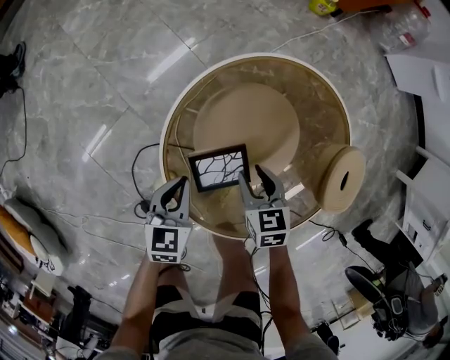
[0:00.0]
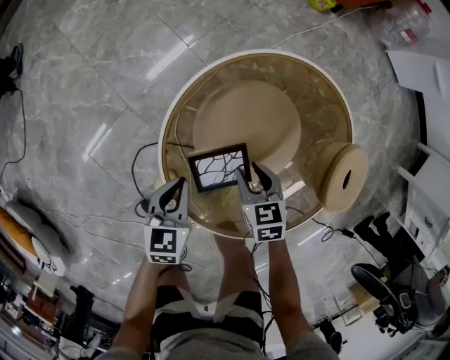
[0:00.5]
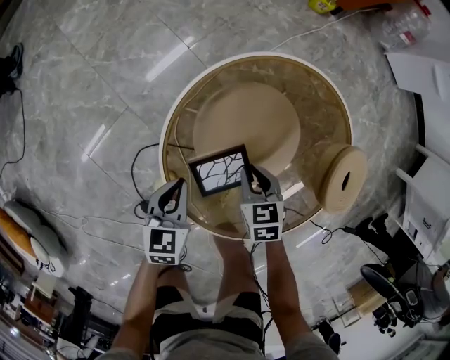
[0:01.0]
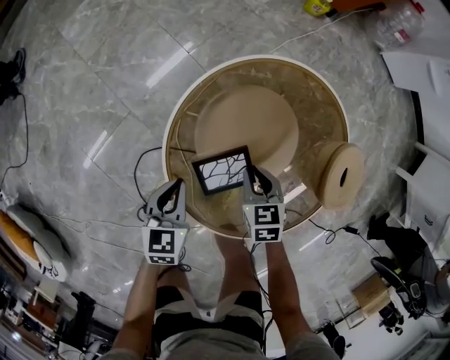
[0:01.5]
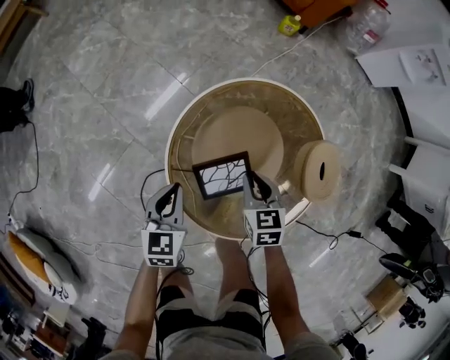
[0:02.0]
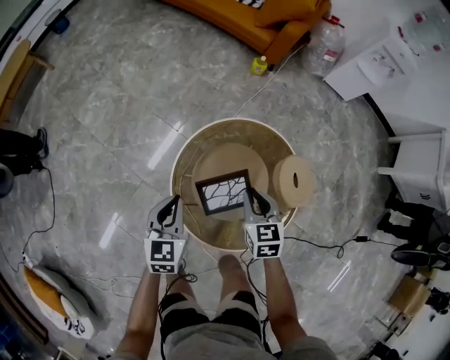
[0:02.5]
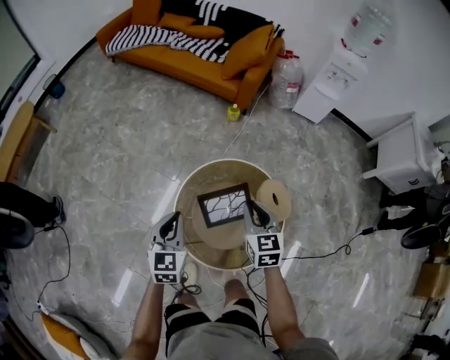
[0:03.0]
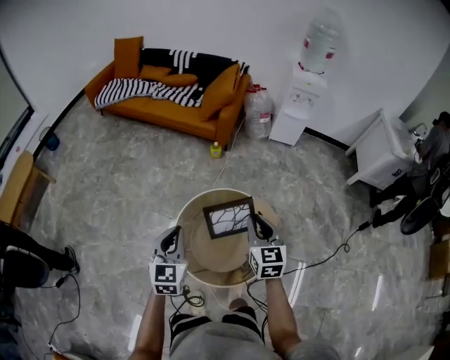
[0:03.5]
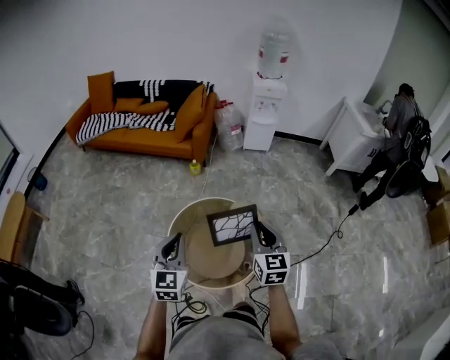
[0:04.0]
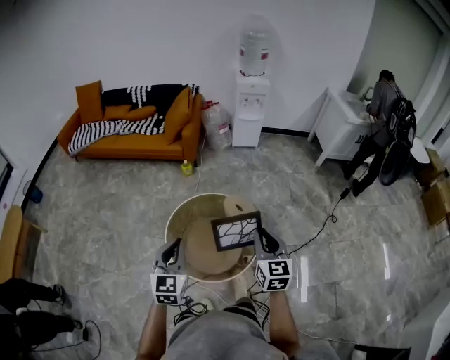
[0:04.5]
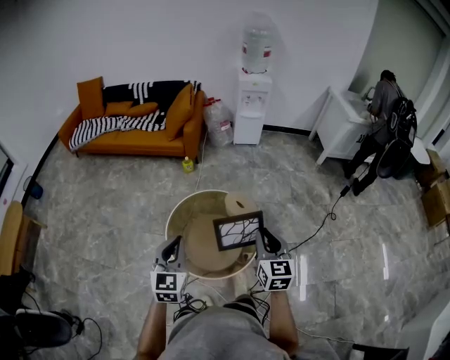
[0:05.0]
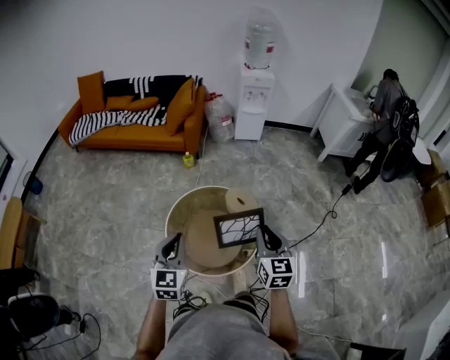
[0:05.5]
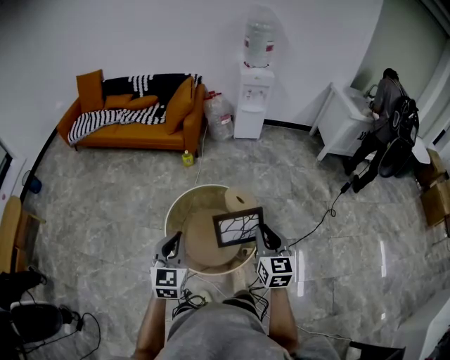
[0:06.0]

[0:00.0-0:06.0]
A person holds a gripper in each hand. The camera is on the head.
0:00.0 to 0:02.0: Both grippers move upward, roughly 10 cm. The right gripper closes up.
0:02.0 to 0:04.0: The grippers both shift upward by roughly 40 cm. The left gripper tips its fingers upward by some 40 degrees, while the right gripper tips its fingers upward by roughly 40 degrees.
0:04.0 to 0:06.0: The right gripper heads backward, covering some 10 cm. The left gripper heads backward, covering some 5 cm.

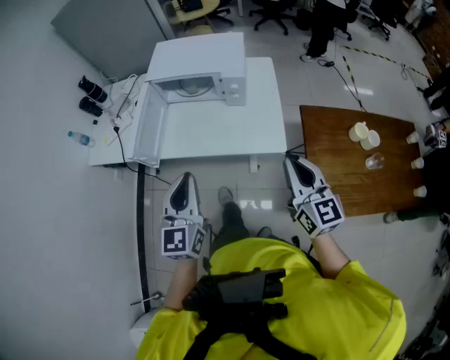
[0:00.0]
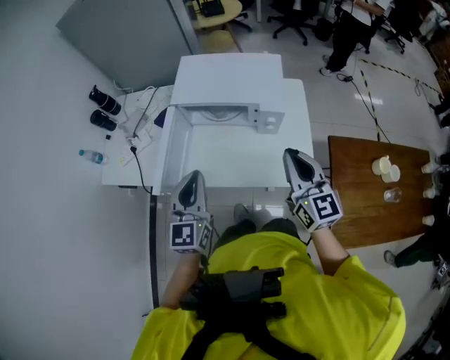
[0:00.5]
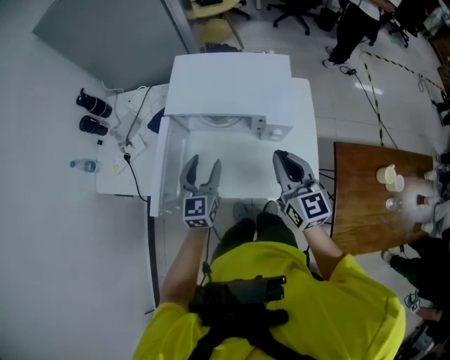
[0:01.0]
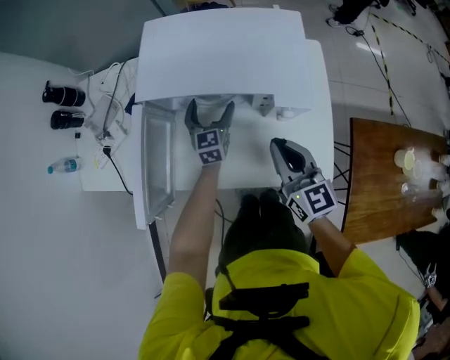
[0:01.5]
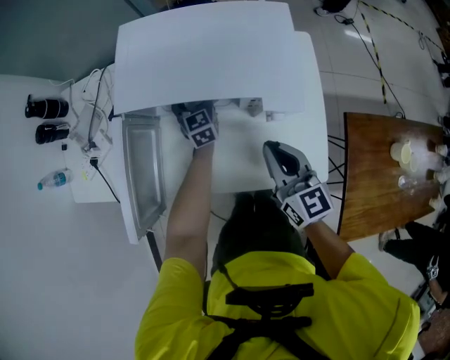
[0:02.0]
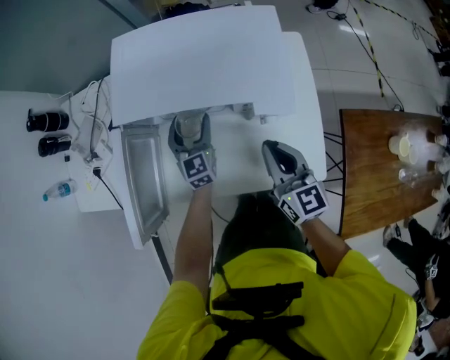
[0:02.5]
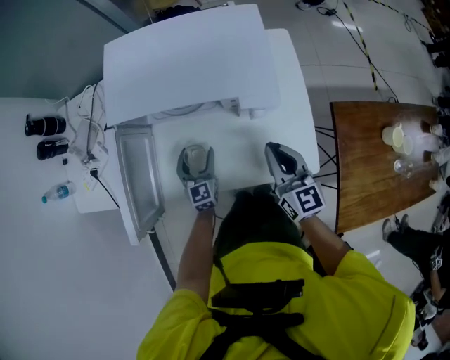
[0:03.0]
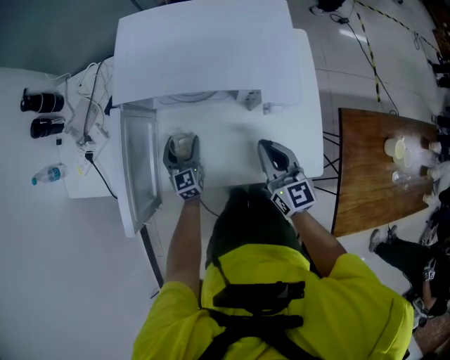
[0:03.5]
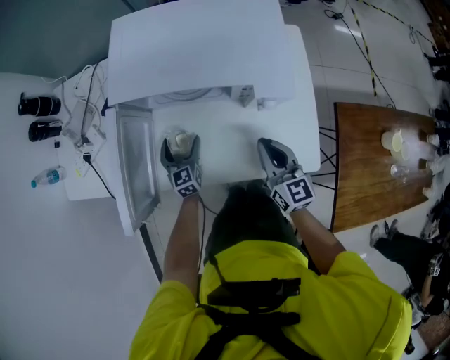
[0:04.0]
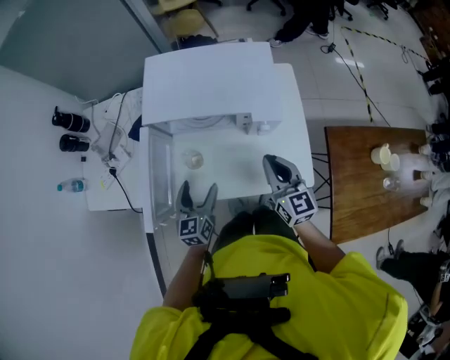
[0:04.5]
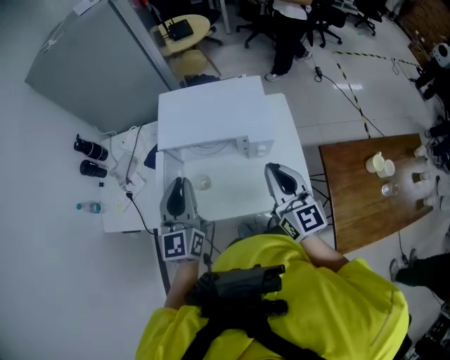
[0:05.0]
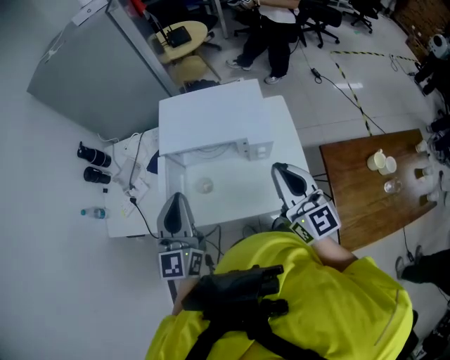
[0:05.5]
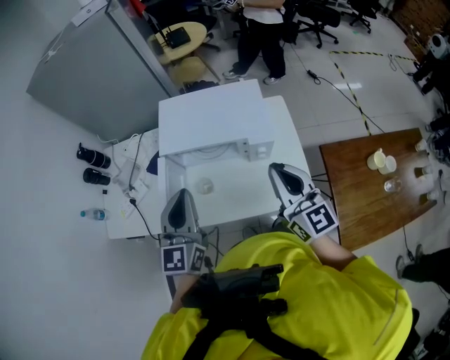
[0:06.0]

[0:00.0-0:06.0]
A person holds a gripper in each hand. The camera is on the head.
0:00.0 to 0:02.0: The left gripper shifts approximately 60 cm forward and downward, and opens up. The right gripper is displaced forward and downward by roughly 40 cm.
0:02.0 to 0:04.0: The left gripper travels backward and to the left by approximately 20 cm. The right gripper heads downward, covering about 5 cm.
0:04.0 to 0:06.0: The left gripper shifts about 40 cm upward, rotates some 30 degrees, and closes; the right gripper moves upward, about 30 cm, and rotates some 20 degrees.

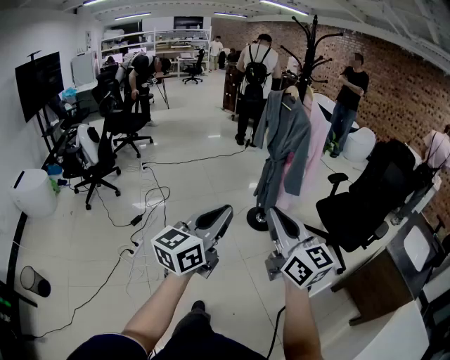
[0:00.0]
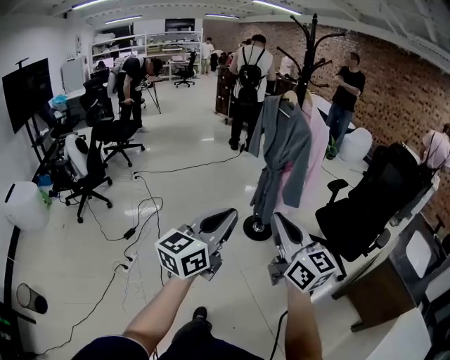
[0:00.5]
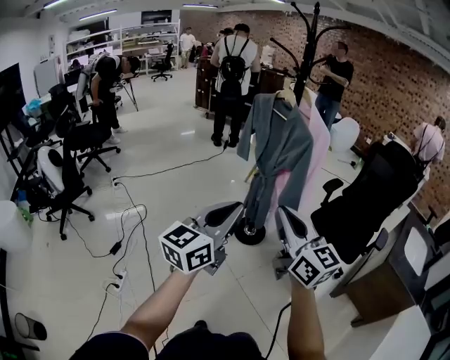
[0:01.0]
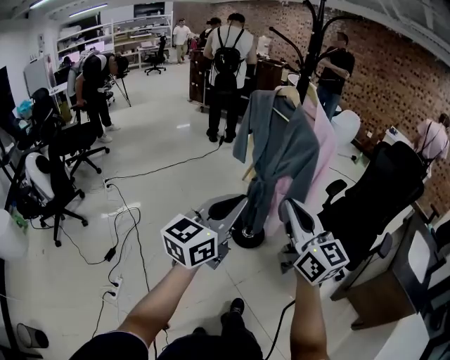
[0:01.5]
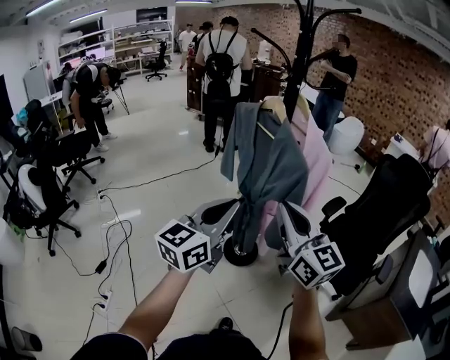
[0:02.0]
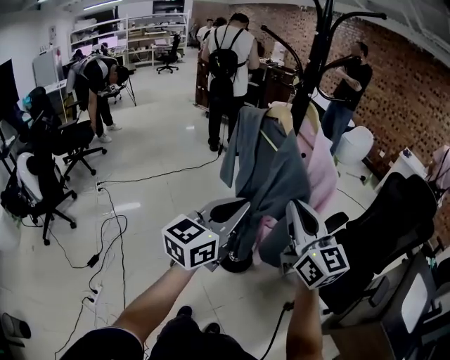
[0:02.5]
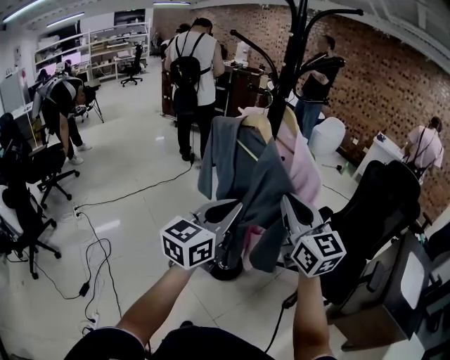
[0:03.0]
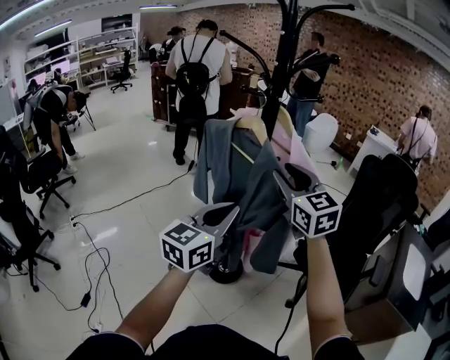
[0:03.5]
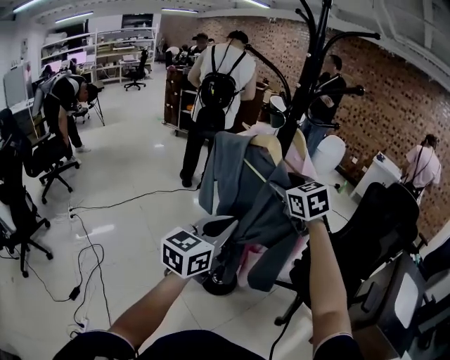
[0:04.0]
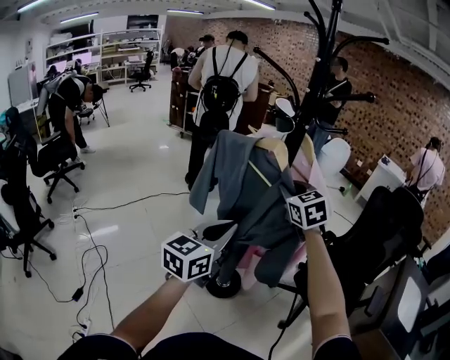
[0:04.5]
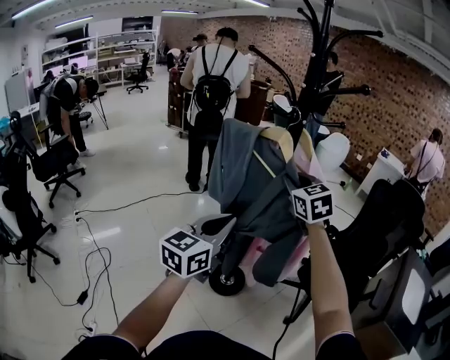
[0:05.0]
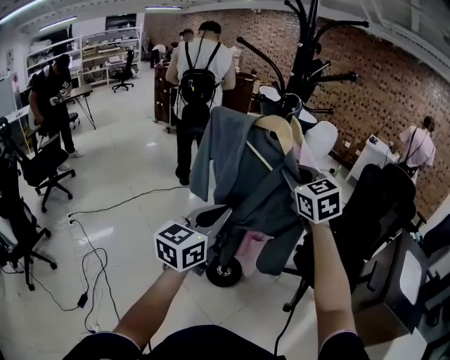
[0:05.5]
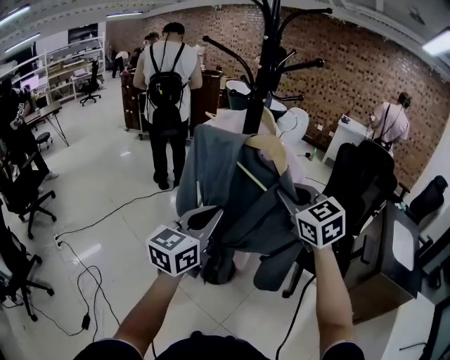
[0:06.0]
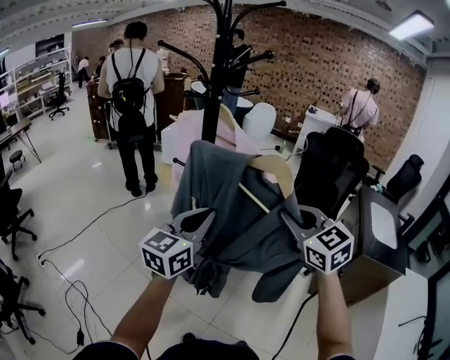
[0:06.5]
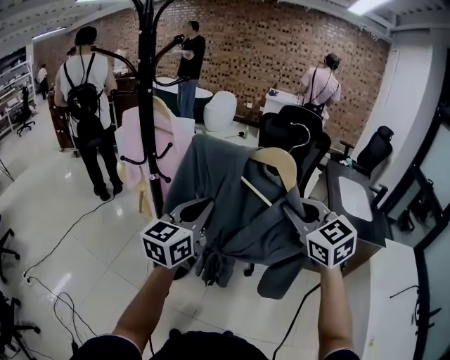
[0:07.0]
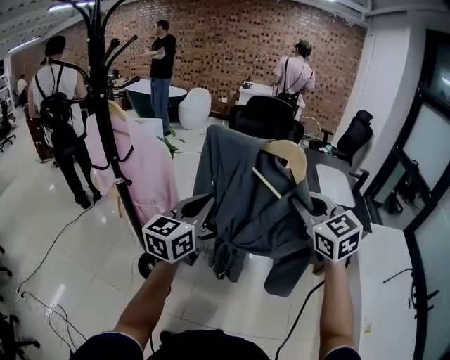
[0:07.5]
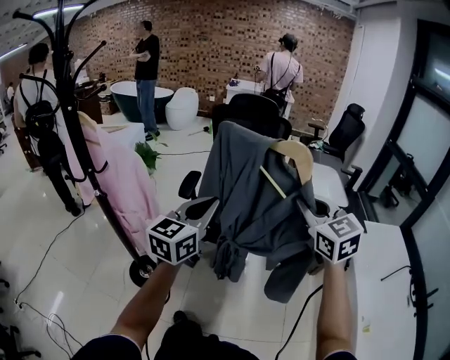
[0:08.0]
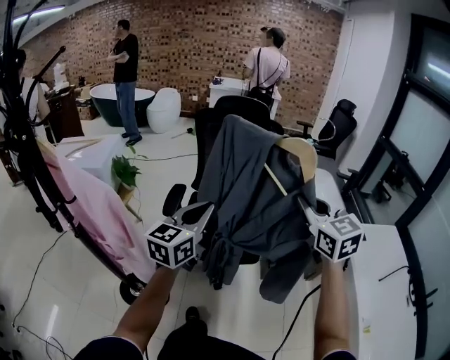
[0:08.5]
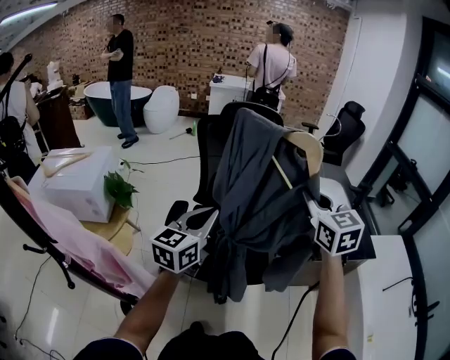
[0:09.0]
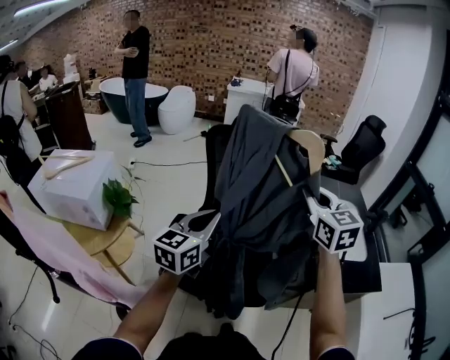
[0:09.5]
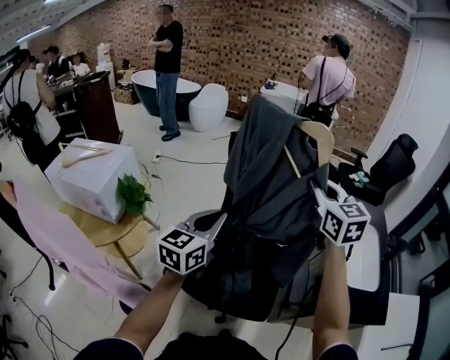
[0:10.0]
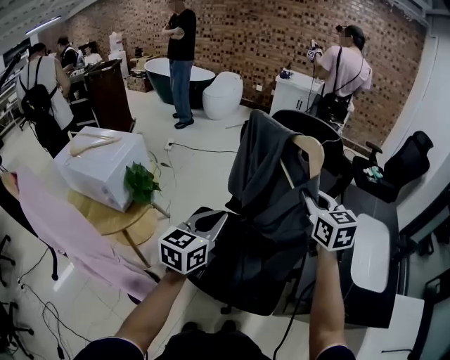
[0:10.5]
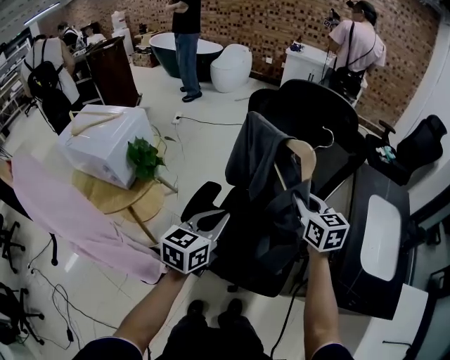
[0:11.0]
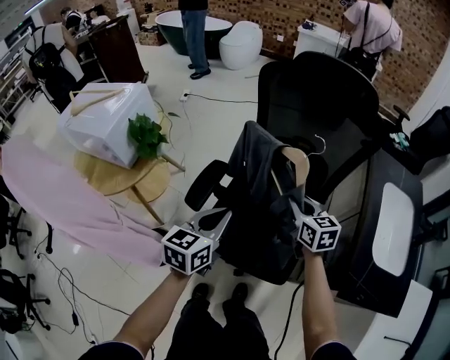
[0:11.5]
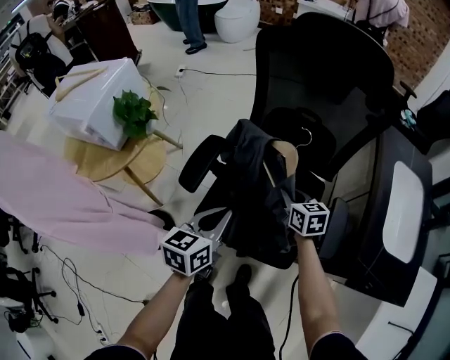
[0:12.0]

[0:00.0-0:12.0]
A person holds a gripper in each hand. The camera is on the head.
0:00.0 to 0:02.0: The pair of grippers is taken forward, approximately 50 cm.
0:02.0 to 0:04.0: The right gripper goes about 30 cm forward, tilts its fingers roughly 30 degrees downward, and opens up. Meanwhile the left gripper is displaced forward by roughly 15 cm.
0:04.0 to 0:06.0: The right gripper is displaced backward by roughly 15 cm, and closes.
0:06.0 to 0:08.0: Both grippers are carried roughly 50 cm. The left gripper changes its angle by about 30 degrees. Meanwhile the right gripper rotates about 40 degrees.
0:08.0 to 0:10.0: The two grippers travel together, forward, some 50 cm.
0:10.0 to 0:12.0: The right gripper moves downward, about 40 cm, and swivels approximately 40 degrees; the left gripper shifts some 25 cm downward, and changes its angle by approximately 30 degrees.

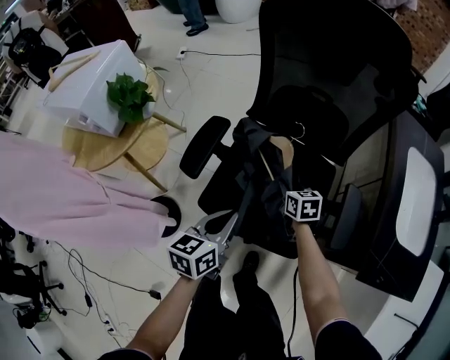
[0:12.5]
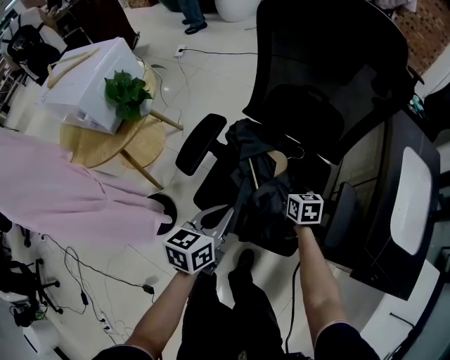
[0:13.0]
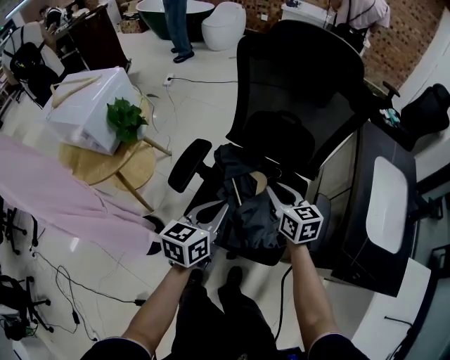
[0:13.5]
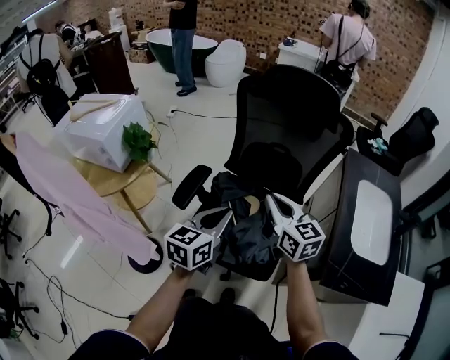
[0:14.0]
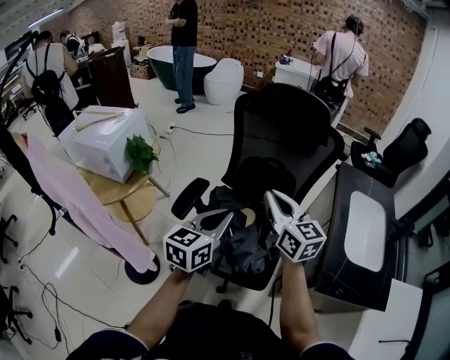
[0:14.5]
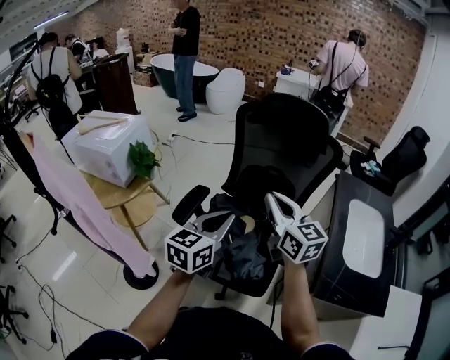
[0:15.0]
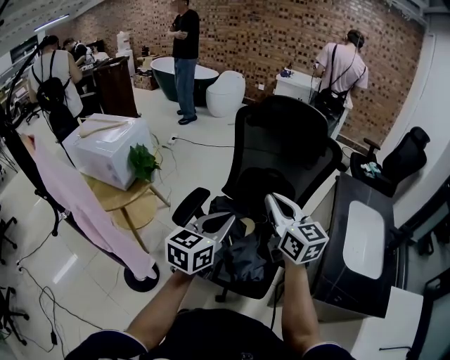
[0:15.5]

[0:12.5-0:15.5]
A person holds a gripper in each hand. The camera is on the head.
0:12.5 to 0:14.0: The left gripper travels upward by about 15 cm. Meanwhile the right gripper shifts roughly 30 cm upward, tips its fingers upward by some 30 degrees, and opens, then closes again.
0:14.0 to 0:15.5: The grippers both shift upward by about 10 cm.
